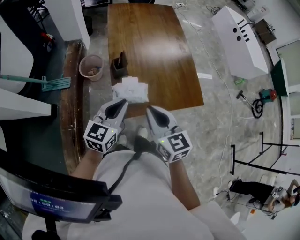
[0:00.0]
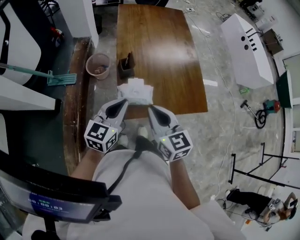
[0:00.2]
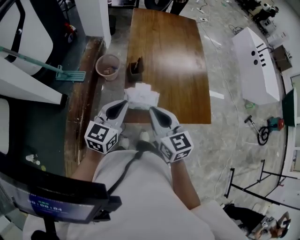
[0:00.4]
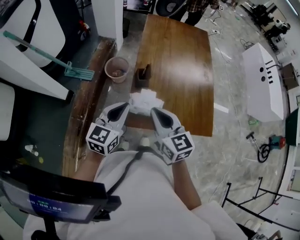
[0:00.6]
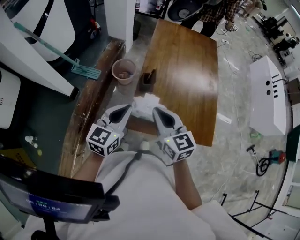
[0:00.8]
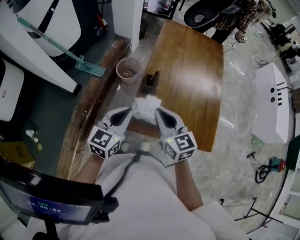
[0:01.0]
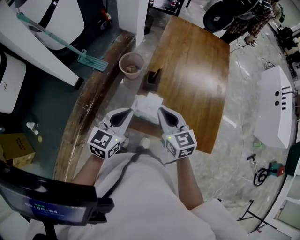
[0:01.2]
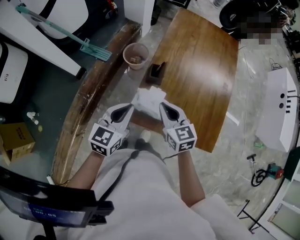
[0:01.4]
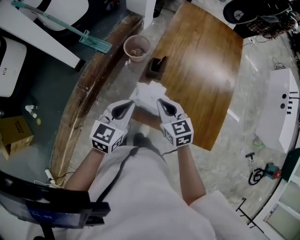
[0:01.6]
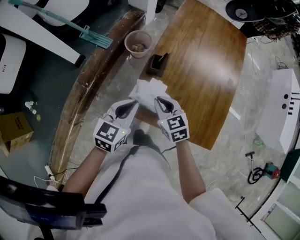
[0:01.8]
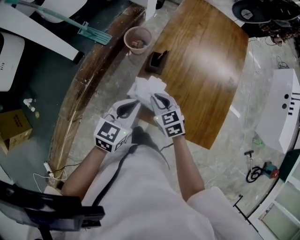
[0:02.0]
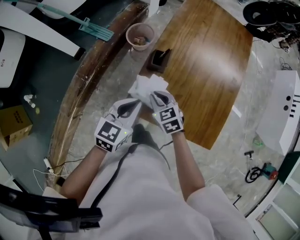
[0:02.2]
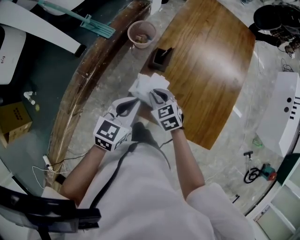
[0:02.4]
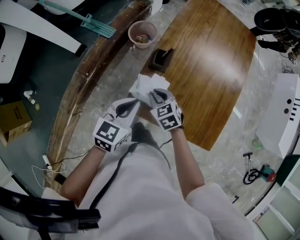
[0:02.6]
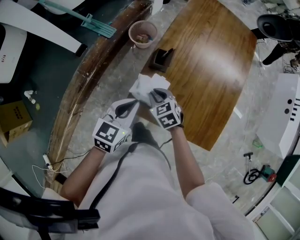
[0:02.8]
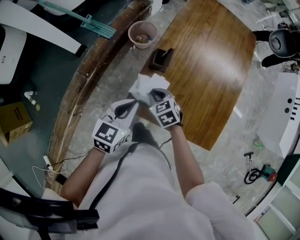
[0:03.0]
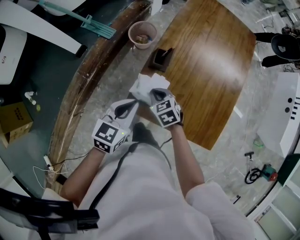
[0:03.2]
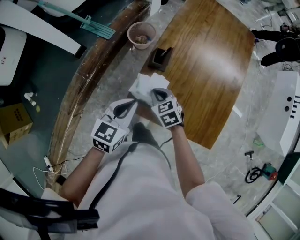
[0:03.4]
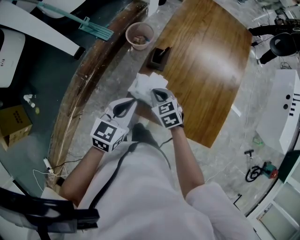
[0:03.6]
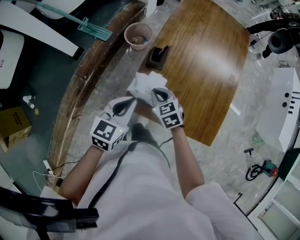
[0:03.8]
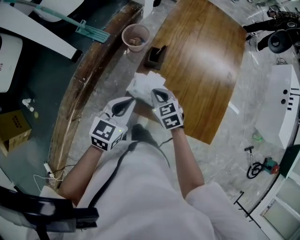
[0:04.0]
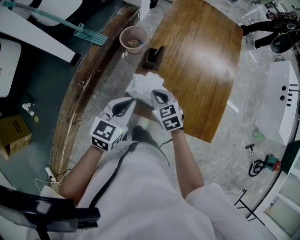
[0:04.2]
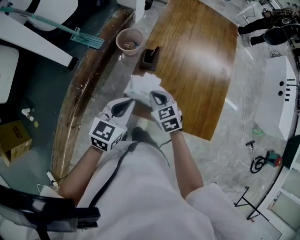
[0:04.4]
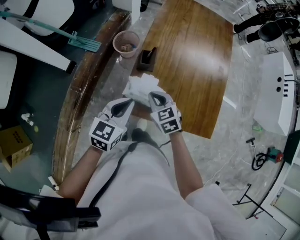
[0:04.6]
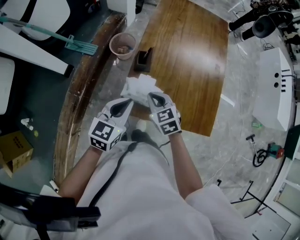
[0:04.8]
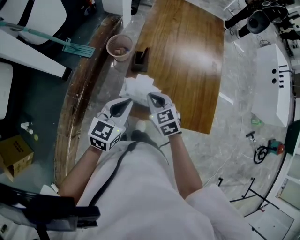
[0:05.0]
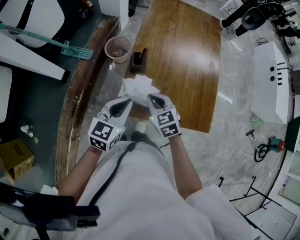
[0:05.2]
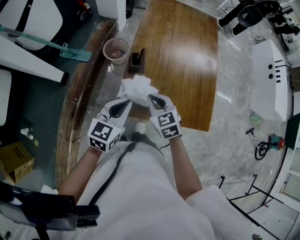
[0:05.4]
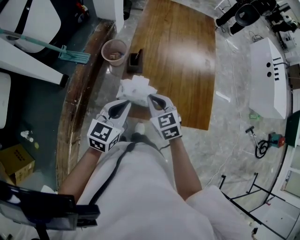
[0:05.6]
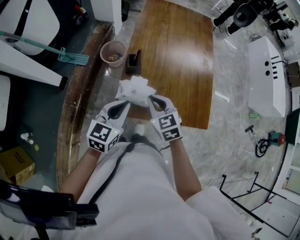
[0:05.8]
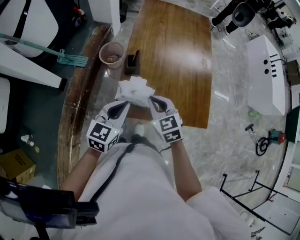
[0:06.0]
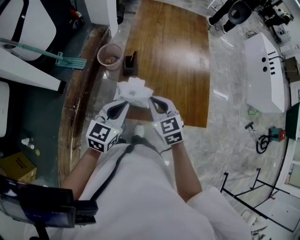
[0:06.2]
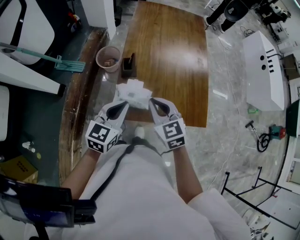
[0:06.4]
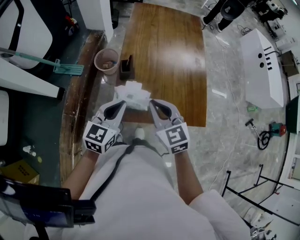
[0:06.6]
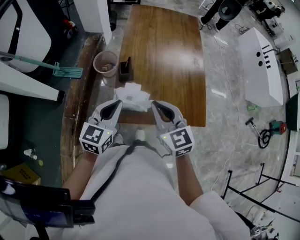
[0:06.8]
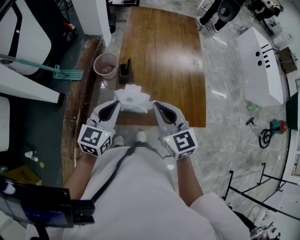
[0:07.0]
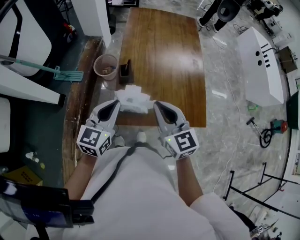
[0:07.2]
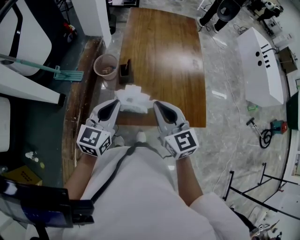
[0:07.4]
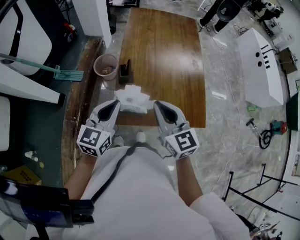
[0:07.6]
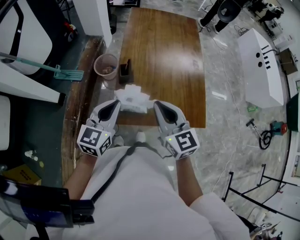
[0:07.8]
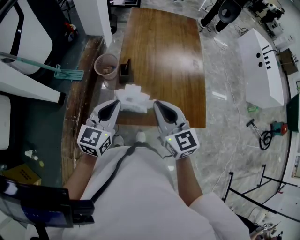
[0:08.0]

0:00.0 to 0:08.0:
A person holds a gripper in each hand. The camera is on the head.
0:00.0 to 0:01.6: The right gripper heads downward, covering roughly 10 cm, and changes its angle by roughly 40 degrees. The left gripper shifts by approximately 5 cm, and rotates roughly 30 degrees.
0:01.6 to 0:03.2: The right gripper is displaced downward by about 10 cm, and swivels roughly 20 degrees.
0:03.2 to 0:04.8: The right gripper heads upward, covering roughly 10 cm.
0:04.8 to 0:06.4: The right gripper moves upward, roughly 10 cm.
0:06.4 to 0:08.0: The right gripper moves upward, roughly 5 cm.

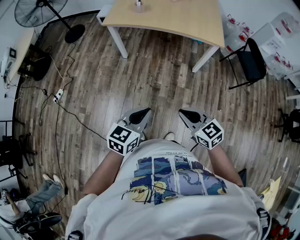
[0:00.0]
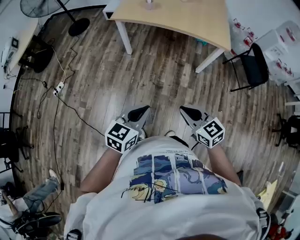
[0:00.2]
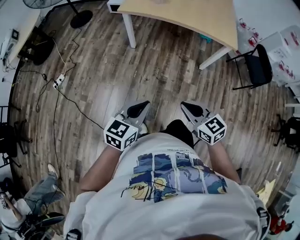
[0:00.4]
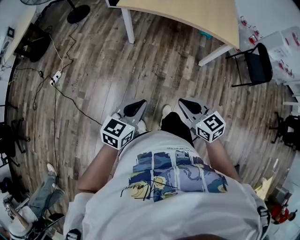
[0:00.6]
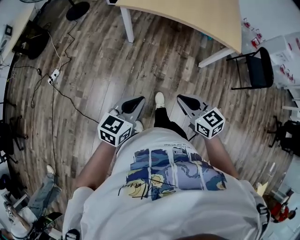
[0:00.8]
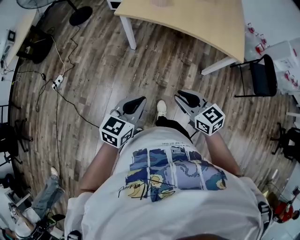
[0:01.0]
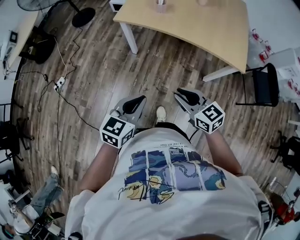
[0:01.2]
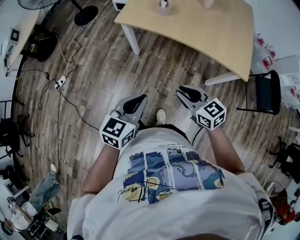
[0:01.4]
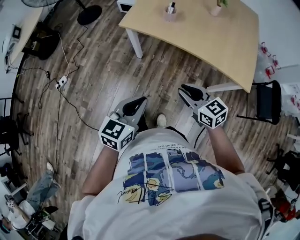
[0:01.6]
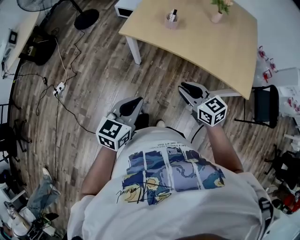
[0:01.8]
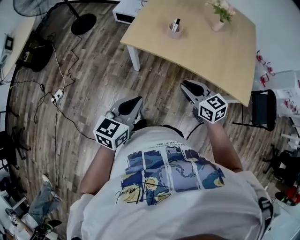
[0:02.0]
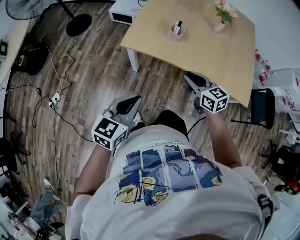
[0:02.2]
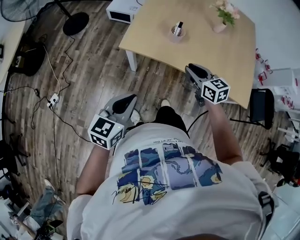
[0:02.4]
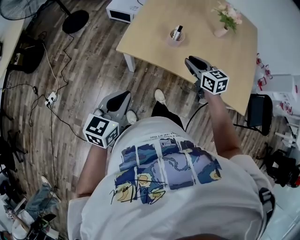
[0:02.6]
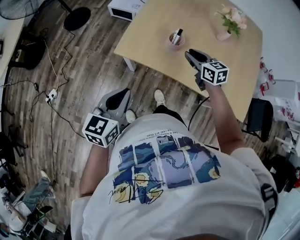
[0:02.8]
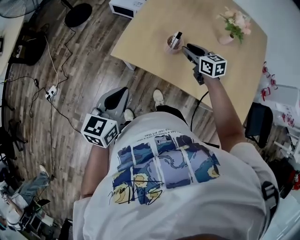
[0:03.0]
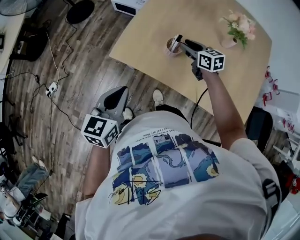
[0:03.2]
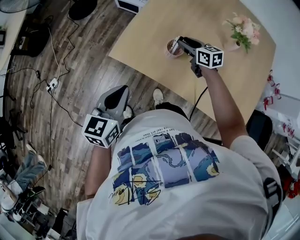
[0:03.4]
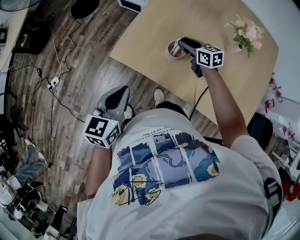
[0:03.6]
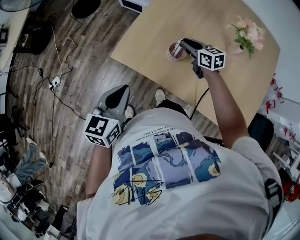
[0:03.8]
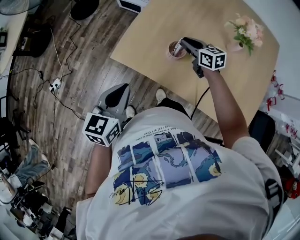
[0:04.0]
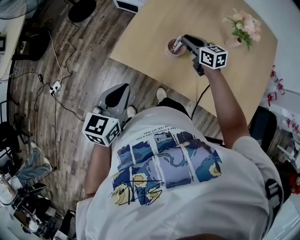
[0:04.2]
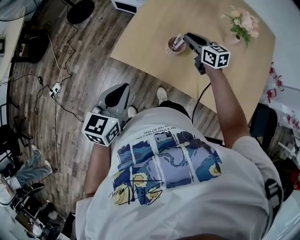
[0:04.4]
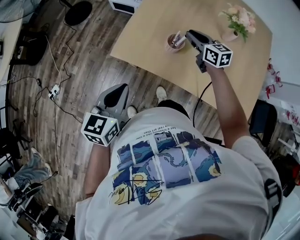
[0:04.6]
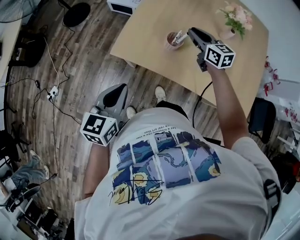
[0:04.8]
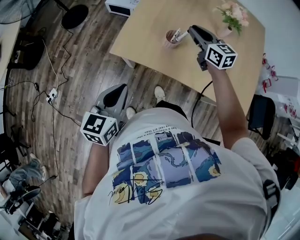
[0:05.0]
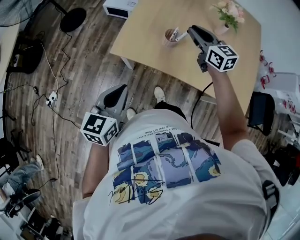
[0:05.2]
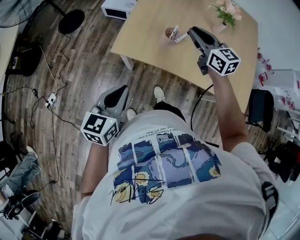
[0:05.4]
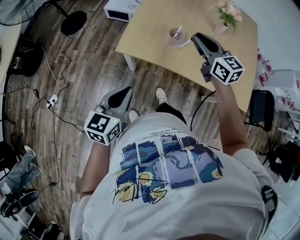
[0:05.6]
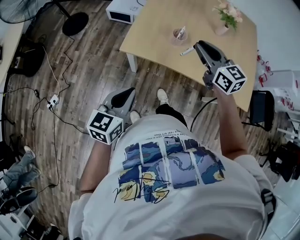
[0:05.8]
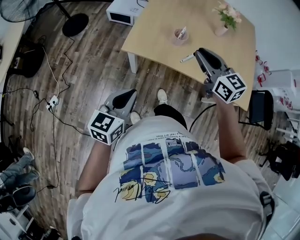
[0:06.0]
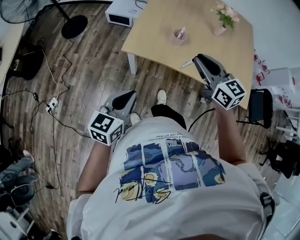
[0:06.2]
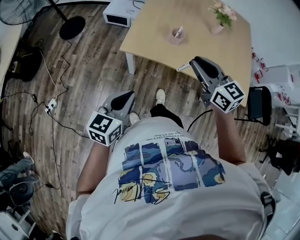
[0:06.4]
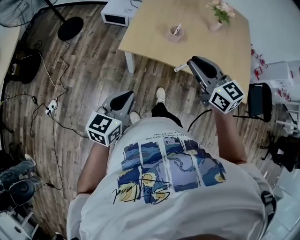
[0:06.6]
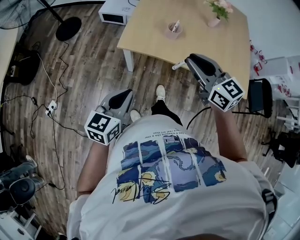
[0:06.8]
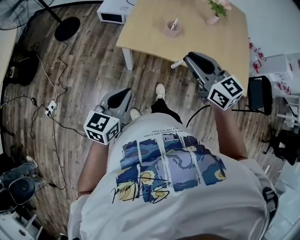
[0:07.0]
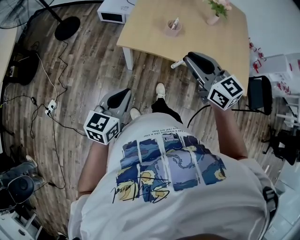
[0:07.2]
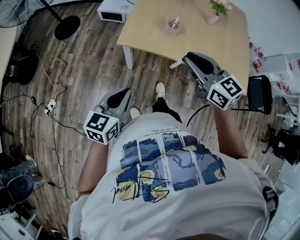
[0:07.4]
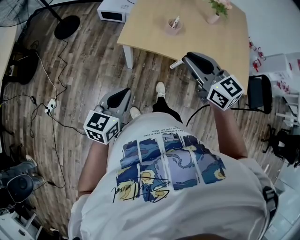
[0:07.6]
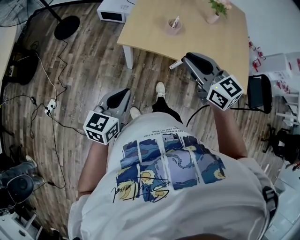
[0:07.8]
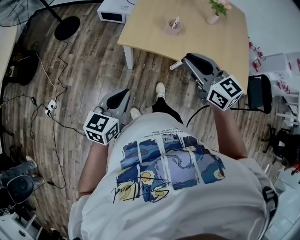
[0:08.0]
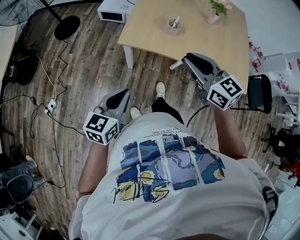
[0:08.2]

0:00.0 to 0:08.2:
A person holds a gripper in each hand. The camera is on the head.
0:00.0 to 0:01.6: The two grippers go roughly 35 cm forward.
0:01.6 to 0:03.2: The left gripper travels forward by approximately 35 cm. Meanwhile the right gripper is displaced forward by some 50 cm.
0:03.2 to 0:05.0: The right gripper travels upward by some 10 cm.
0:05.0 to 0:06.6: The right gripper heads backward, covering approximately 25 cm; the left gripper moves backward and to the left, some 10 cm.
0:06.6 to 0:08.2: The grippers make only small movements.

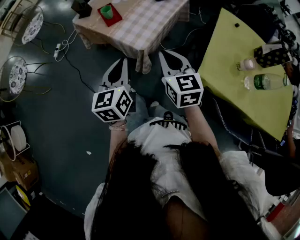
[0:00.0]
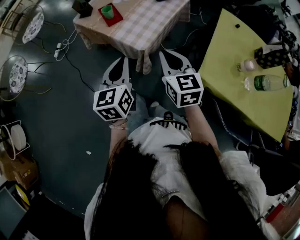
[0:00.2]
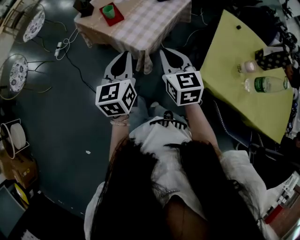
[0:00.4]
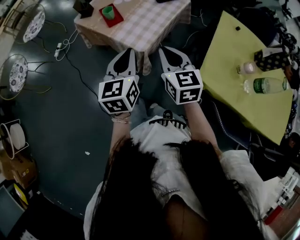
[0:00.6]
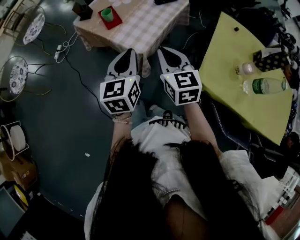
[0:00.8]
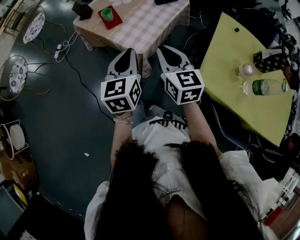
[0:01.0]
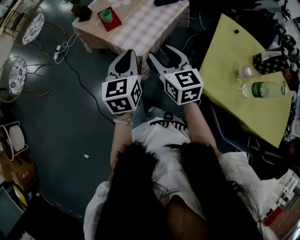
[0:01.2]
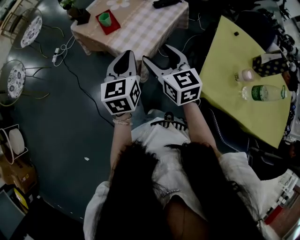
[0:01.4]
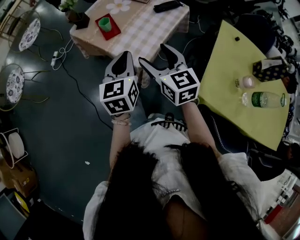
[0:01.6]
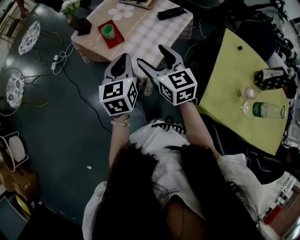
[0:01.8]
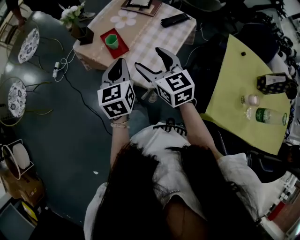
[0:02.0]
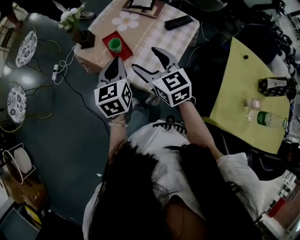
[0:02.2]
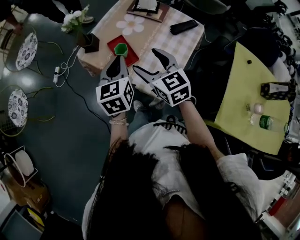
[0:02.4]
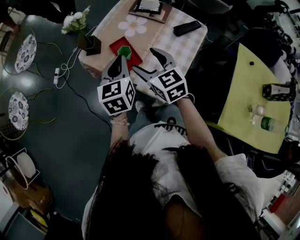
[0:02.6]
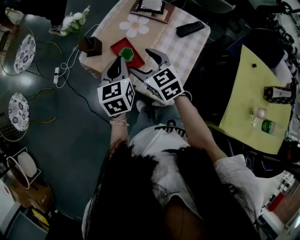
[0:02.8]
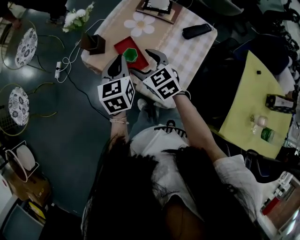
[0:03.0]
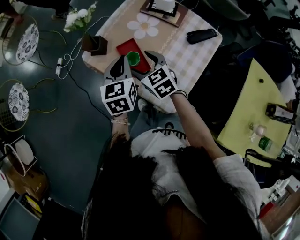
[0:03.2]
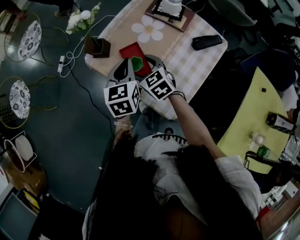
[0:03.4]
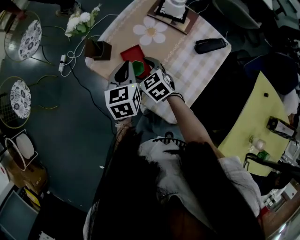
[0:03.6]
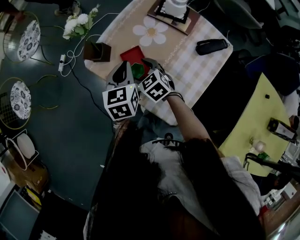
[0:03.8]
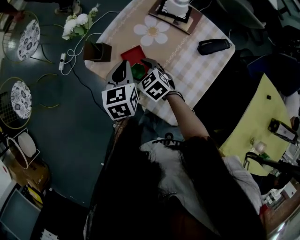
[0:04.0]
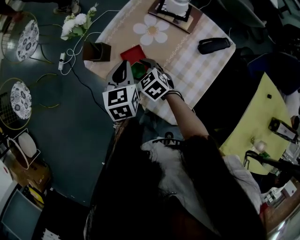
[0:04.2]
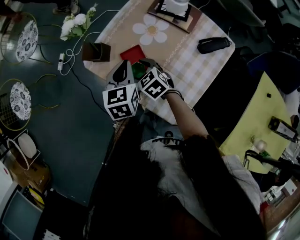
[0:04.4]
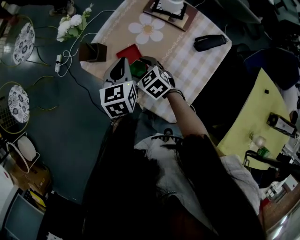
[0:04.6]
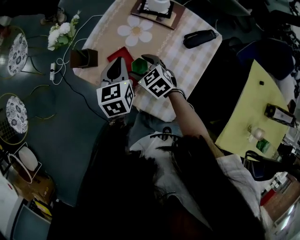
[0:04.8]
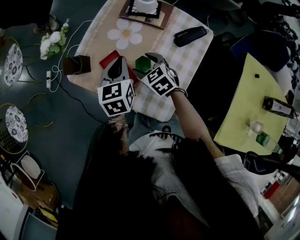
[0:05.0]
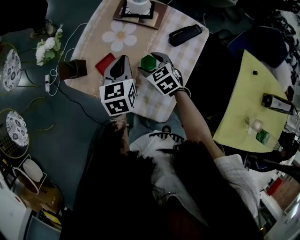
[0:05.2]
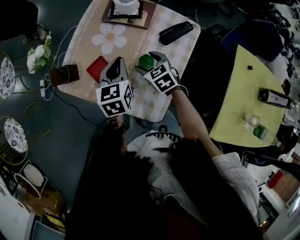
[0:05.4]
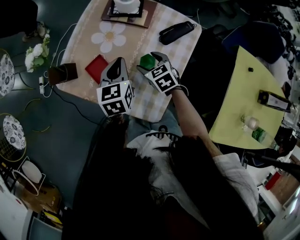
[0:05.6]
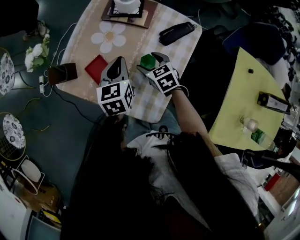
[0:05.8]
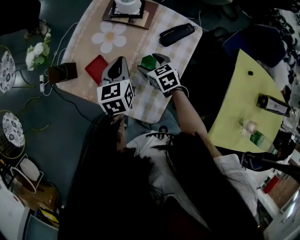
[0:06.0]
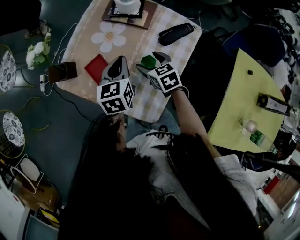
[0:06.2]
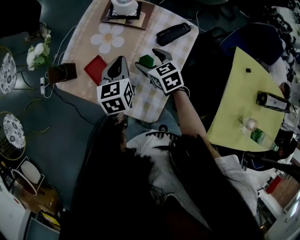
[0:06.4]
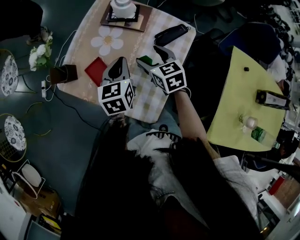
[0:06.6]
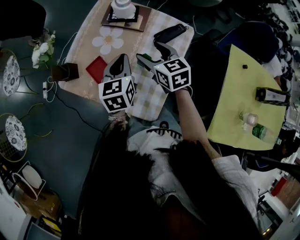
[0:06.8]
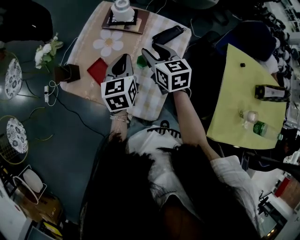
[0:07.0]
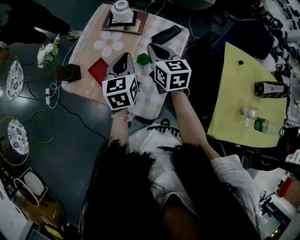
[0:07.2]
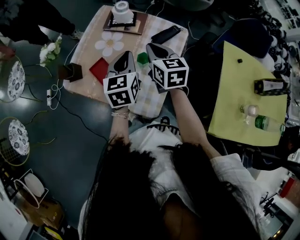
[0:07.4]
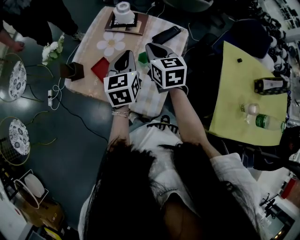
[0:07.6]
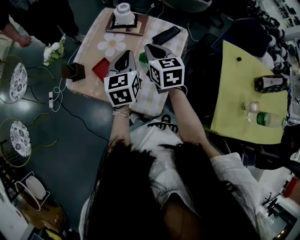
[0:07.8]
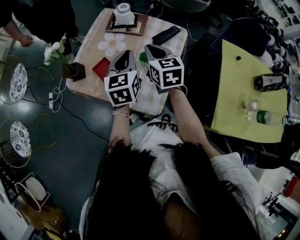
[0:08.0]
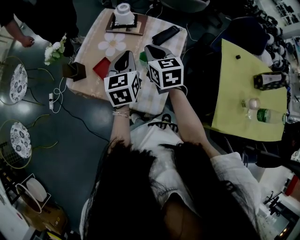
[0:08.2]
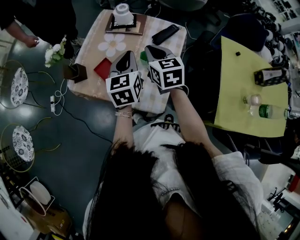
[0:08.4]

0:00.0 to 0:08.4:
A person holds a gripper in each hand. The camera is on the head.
0:00.0 to 0:01.4: The grippers both shift forward by some 5 cm. The right gripper opens up.
0:01.4 to 0:02.8: The left gripper travels forward by some 30 cm. Meanwhile the right gripper moves forward and to the left, approximately 35 cm.
0:02.8 to 0:04.2: The left gripper goes some 10 cm forward and downward. Meanwhile the right gripper shifts about 20 cm downward and forward, and turns by approximately 20 degrees.
0:04.2 to 0:05.6: The right gripper is displaced to the right by approximately 20 cm, and rotates about 20 degrees. Meanwhile the left gripper shifts about 15 cm to the right.
0:05.6 to 0:07.0: The left gripper is displaced upward by roughly 5 cm. The right gripper goes some 15 cm upward, turns by about 30 degrees, and closes up.
0:07.0 to 0:08.4: The left gripper changes place by about 5 cm, while the right gripper is displaced backward by about 5 cm, and closes its fingers.
